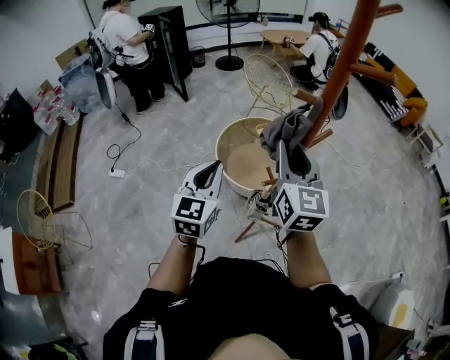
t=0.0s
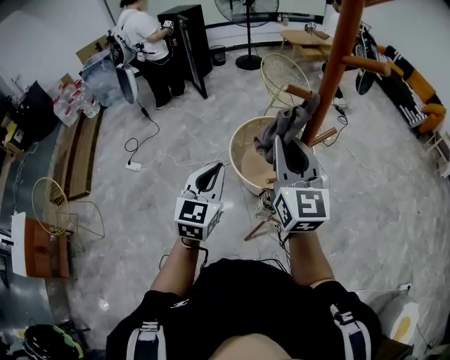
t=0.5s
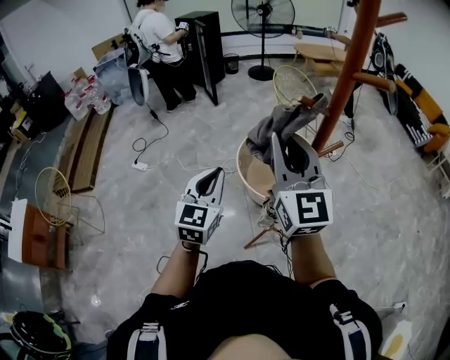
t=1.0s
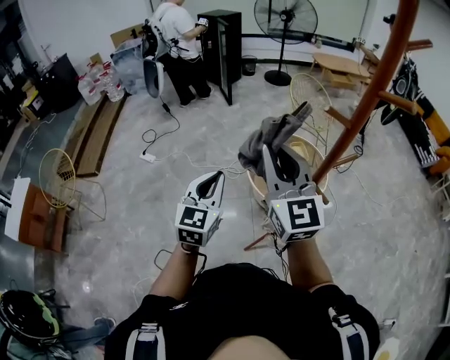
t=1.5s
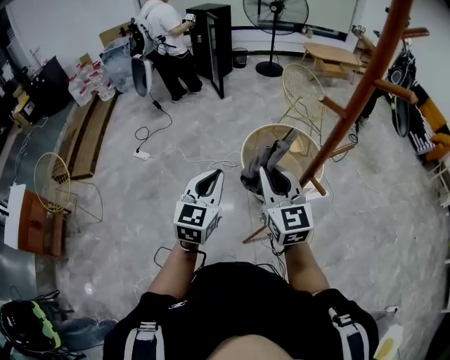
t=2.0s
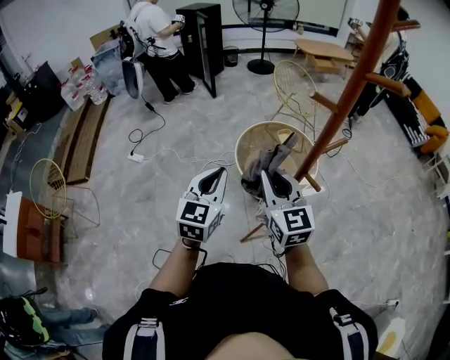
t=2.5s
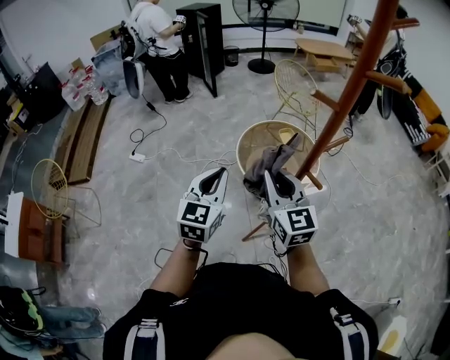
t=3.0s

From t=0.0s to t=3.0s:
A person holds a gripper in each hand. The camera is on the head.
From t=0.0s to t=1.5s: The right gripper moves to the left, upward and backward, roughly 15 cm, and changes its angle by some 30 degrees; the left gripper travels backward and to the left by some 10 cm.
From t=1.5s to t=3.0s: The right gripper goes about 10 cm downward.

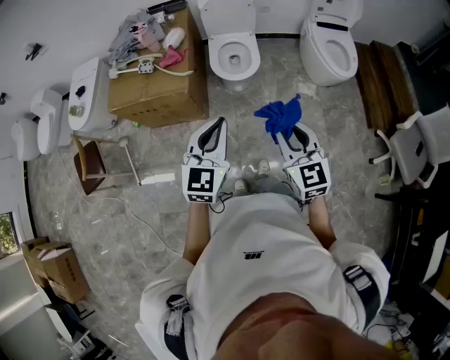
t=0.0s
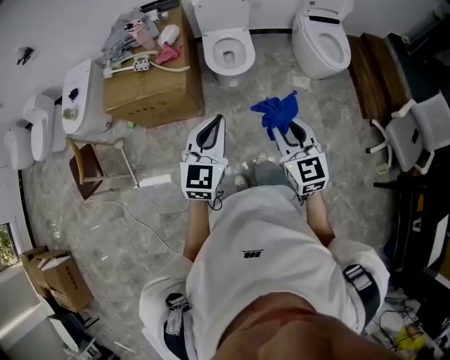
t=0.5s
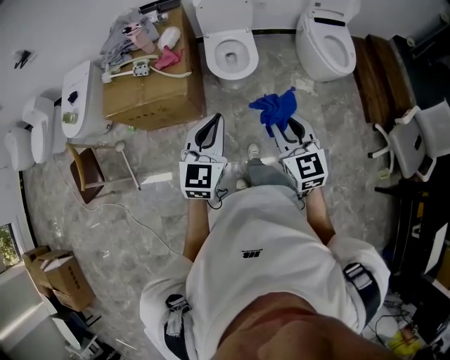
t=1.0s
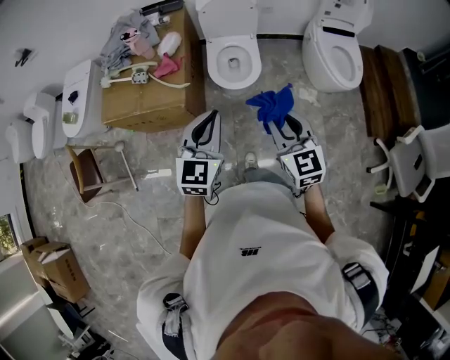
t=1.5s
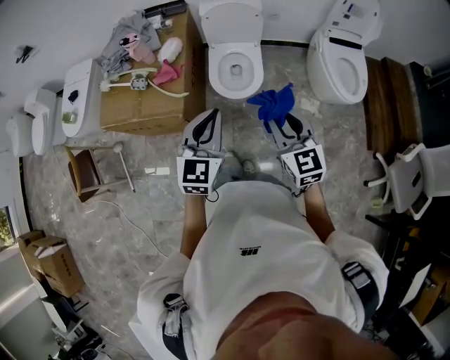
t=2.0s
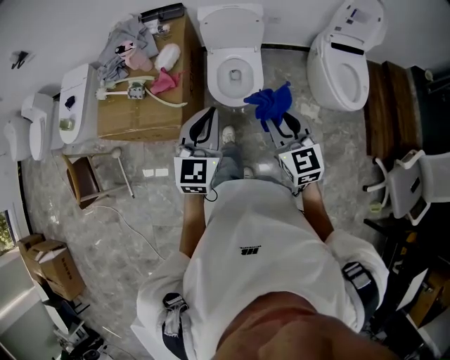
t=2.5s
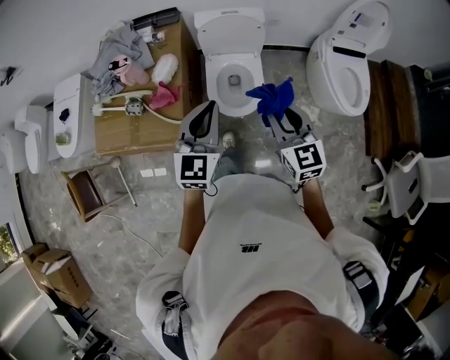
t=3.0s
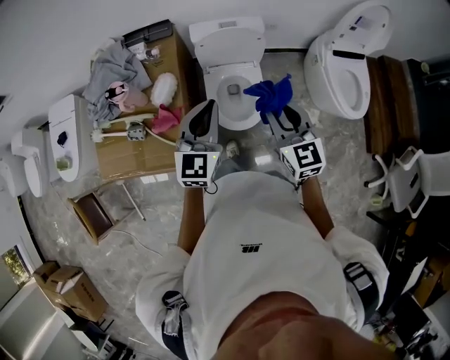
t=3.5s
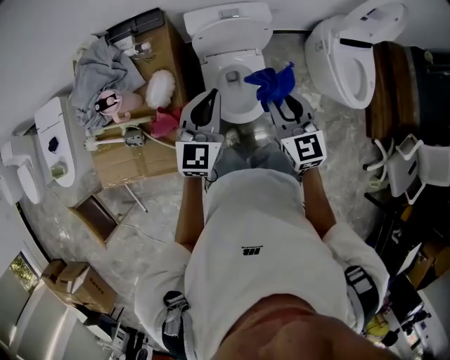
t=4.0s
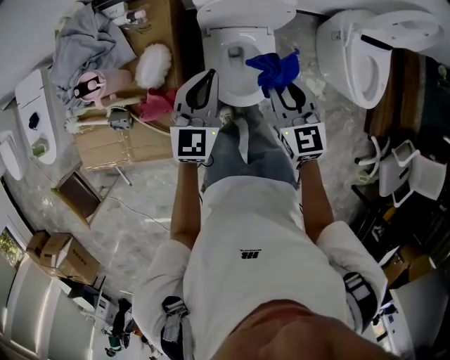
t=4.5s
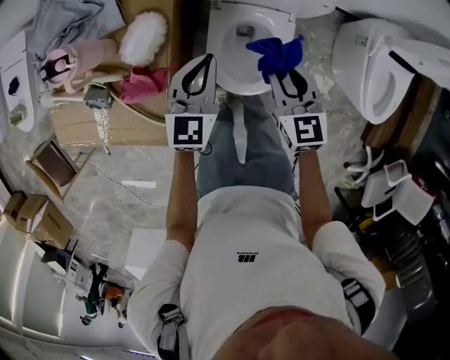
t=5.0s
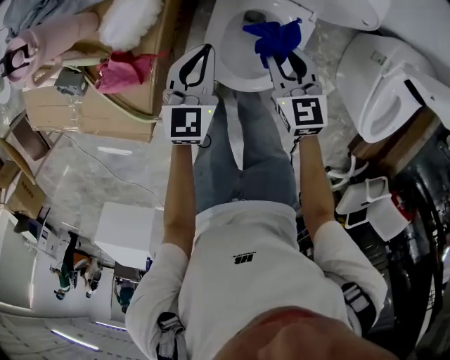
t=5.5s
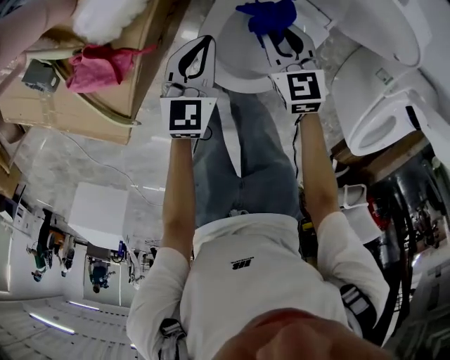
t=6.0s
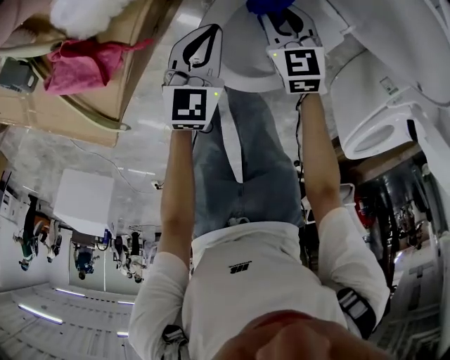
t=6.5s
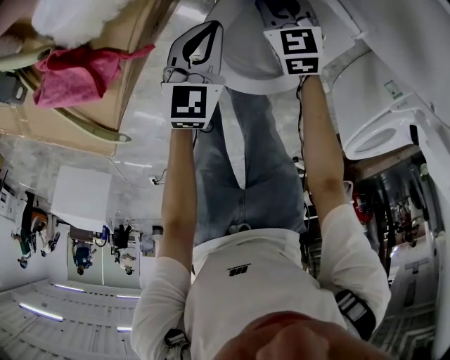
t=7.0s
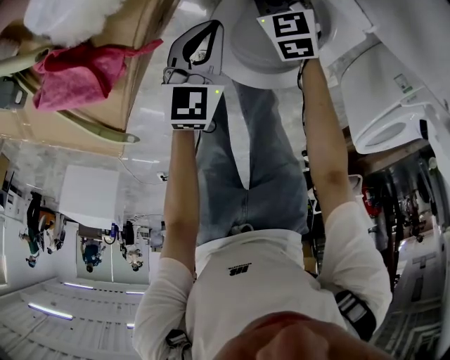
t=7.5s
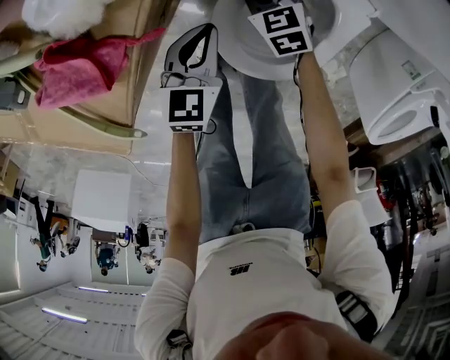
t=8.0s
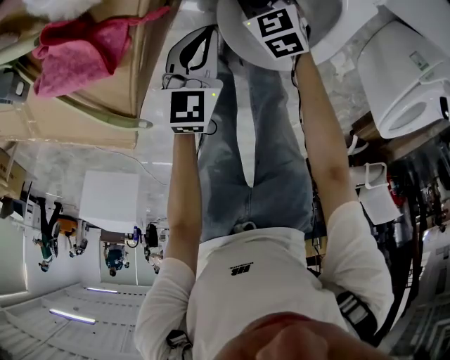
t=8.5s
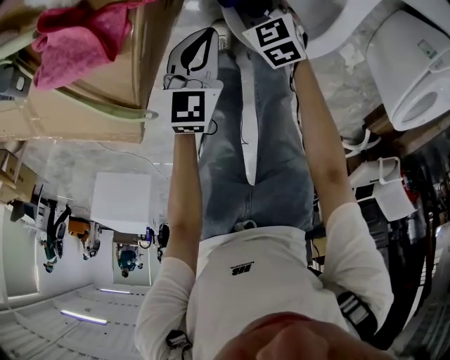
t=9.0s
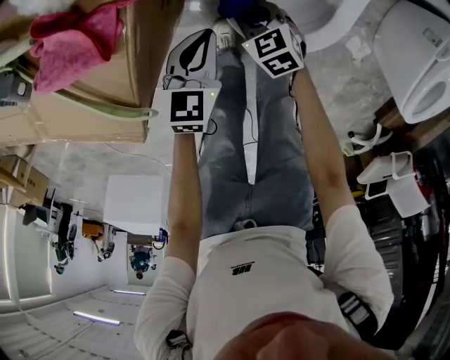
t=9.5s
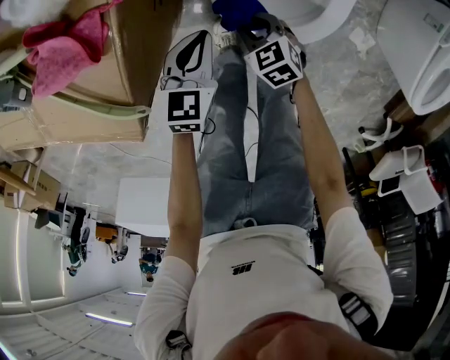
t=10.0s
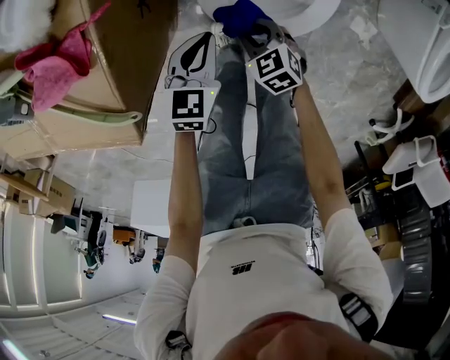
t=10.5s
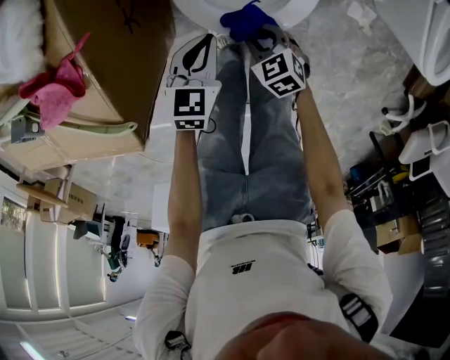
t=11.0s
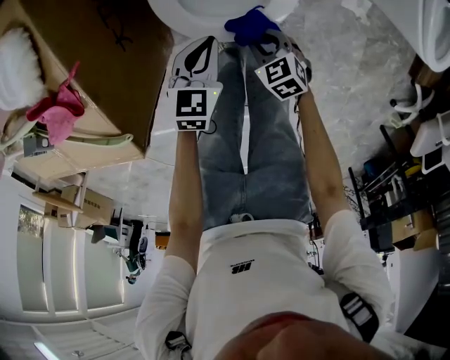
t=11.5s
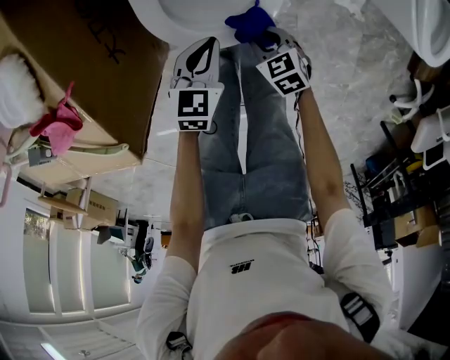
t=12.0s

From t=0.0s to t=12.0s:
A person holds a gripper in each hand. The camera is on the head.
From t=0.0s to t=2.0s: The grippers both shift forward by roughly 25 cm.
From t=2.0s to t=4.0s: The two grippers travel together, forward, approximately 40 cm.
From t=4.0s to t=6.0s: The grippers both shift downward by about 40 cm. The right gripper changes its angle by approximately 40 degrees; the left gripper rotates approximately 40 degrees.
From t=6.0s to t=8.0s: The right gripper heads downward and to the left, covering some 20 cm, while the left gripper goes about 15 cm downward and to the left.
From t=8.0s to t=10.0s: The right gripper travels backward by roughly 20 cm, while the left gripper goes about 10 cm backward.
From t=10.0s to t=12.0s: The two grippers go roughly 15 cm to the right. The left gripper swivels about 20 degrees. The right gripper changes its angle by about 20 degrees.

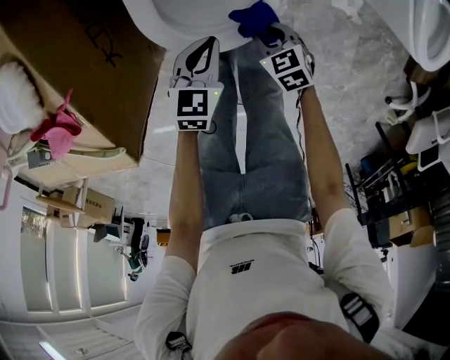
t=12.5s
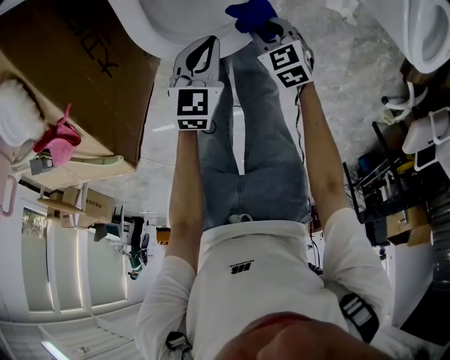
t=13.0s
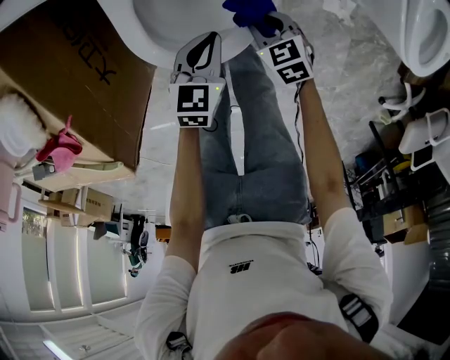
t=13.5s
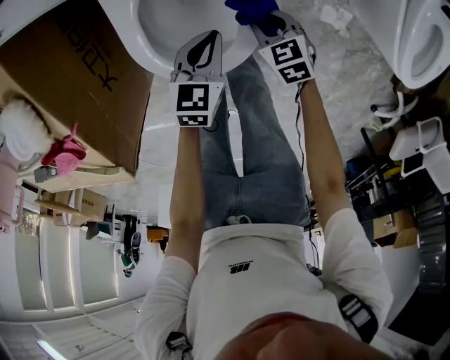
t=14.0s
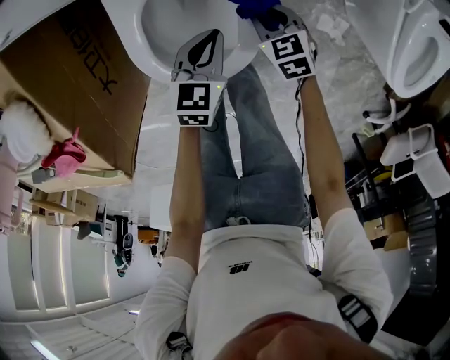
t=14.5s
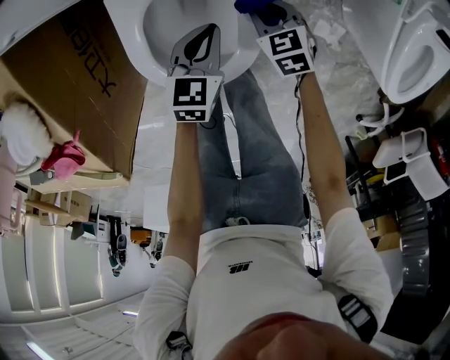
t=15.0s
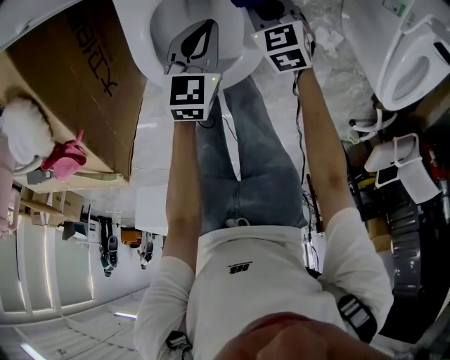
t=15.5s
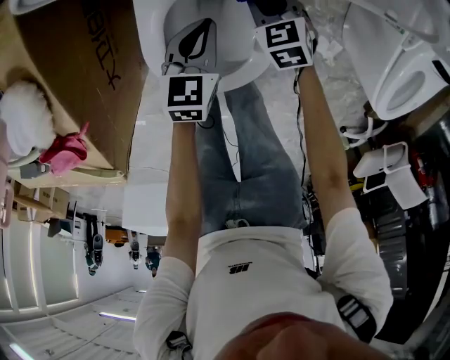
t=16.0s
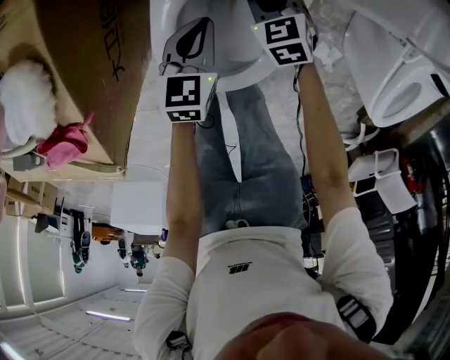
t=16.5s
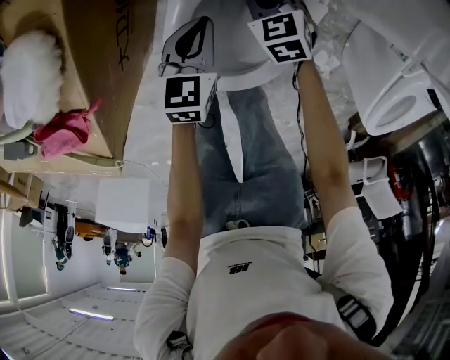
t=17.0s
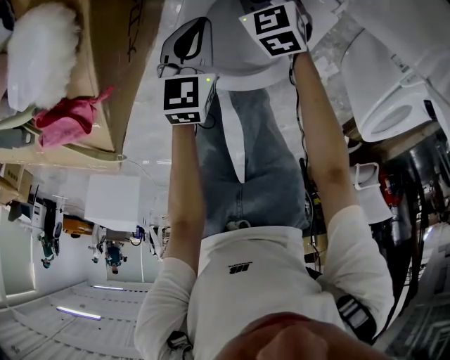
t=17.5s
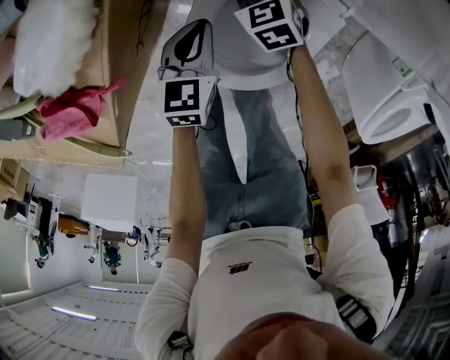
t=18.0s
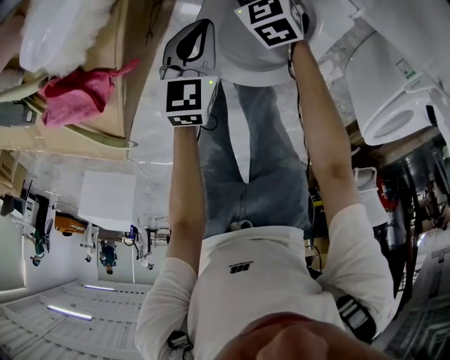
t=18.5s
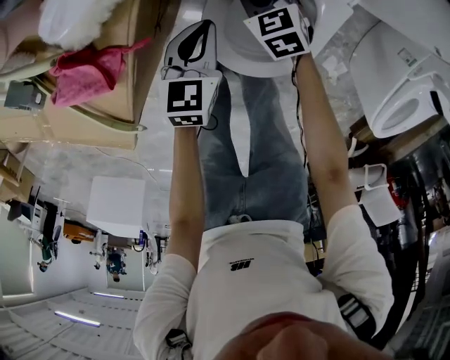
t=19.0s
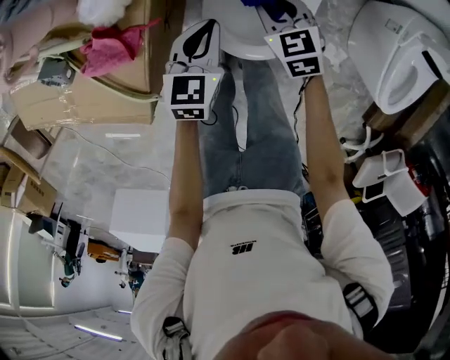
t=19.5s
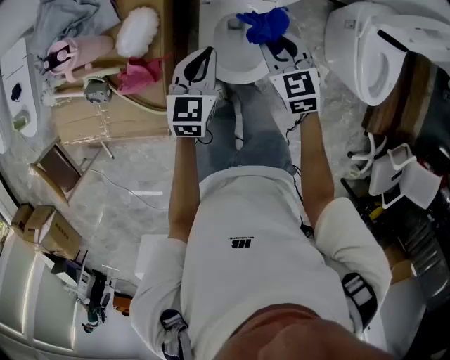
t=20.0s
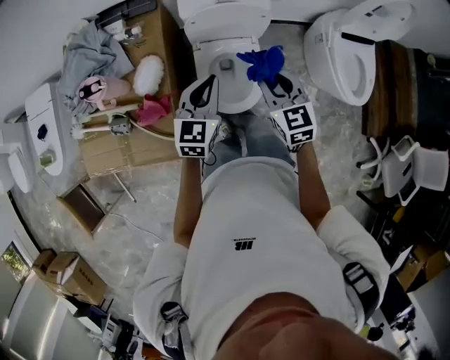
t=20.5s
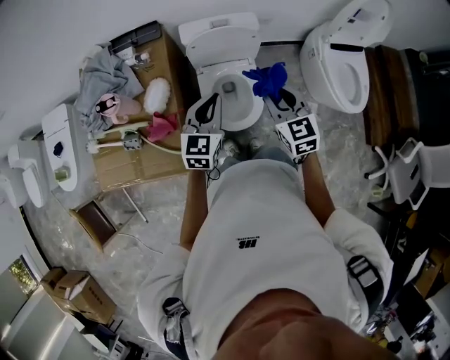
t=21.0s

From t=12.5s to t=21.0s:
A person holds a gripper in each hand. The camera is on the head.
From t=12.5s to t=14.5s: The right gripper shifts about 20 cm forward. Meanwhile the left gripper goes roughly 15 cm forward and to the right.
From t=14.5s to t=16.5s: The right gripper travels forward and to the left by approximately 15 cm. Meanwhile the left gripper moves to the left and forward, roughly 15 cm.
From t=16.5s to t=19.0s: Both grippers travel together to the left, some 15 cm.
From t=19.0s to t=21.0s: The grippers both shift upward by roughly 50 cm. The right gripper points its fingers approximately 30 degrees further upward. The left gripper swivels approximately 40 degrees.

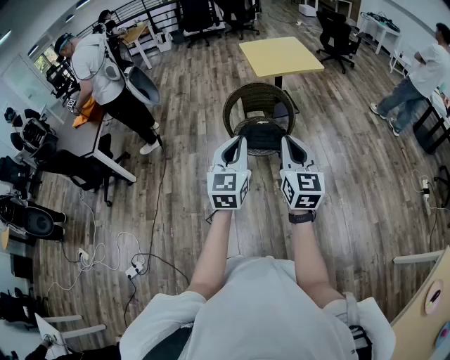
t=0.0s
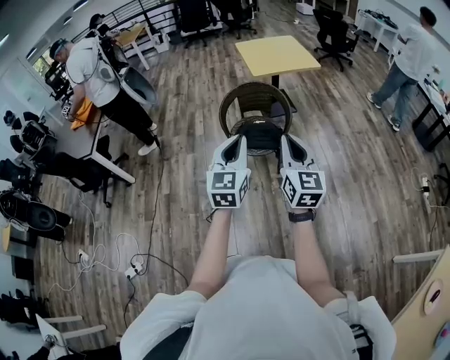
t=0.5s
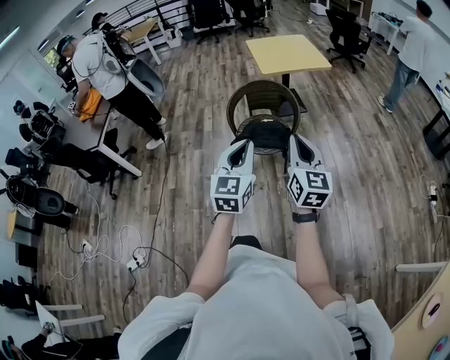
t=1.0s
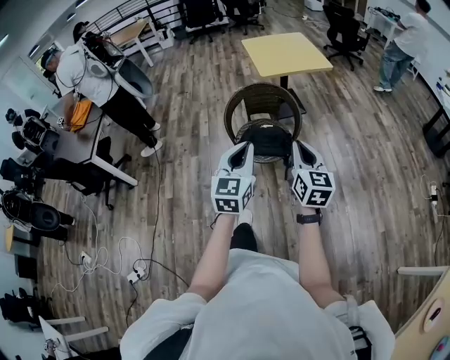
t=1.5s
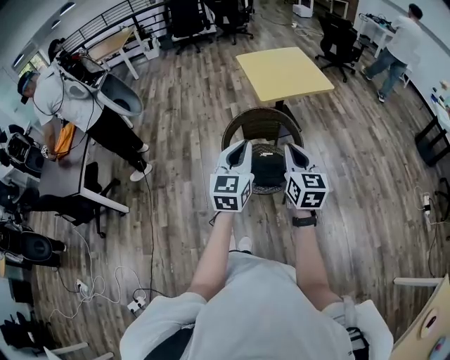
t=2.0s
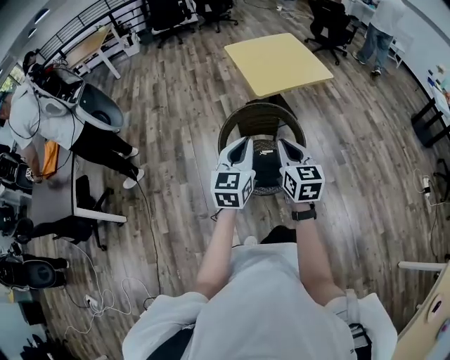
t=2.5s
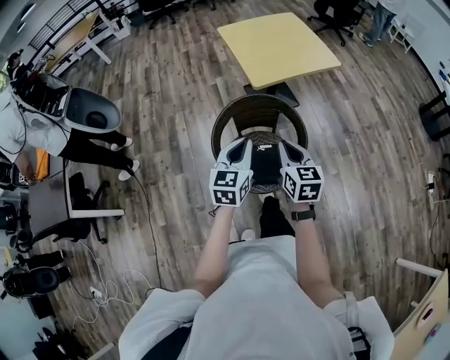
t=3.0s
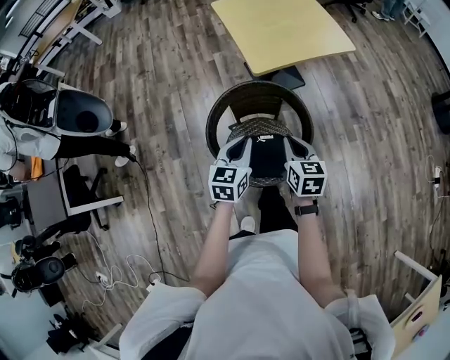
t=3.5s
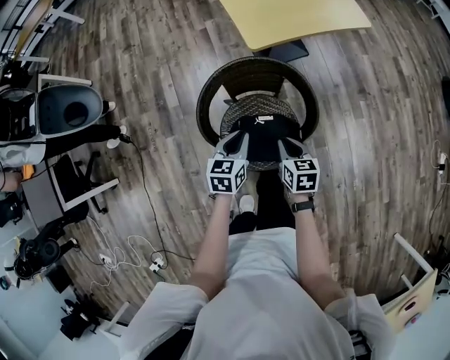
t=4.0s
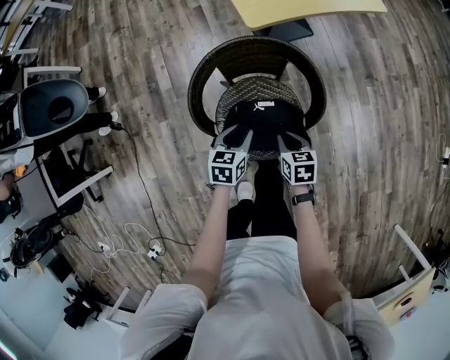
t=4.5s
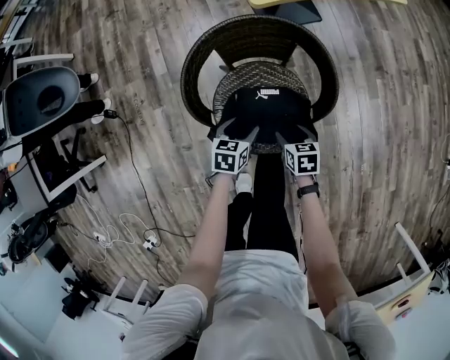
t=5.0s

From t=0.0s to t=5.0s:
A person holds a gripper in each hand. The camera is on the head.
From t=0.0s to t=2.5s: Both grippers are carried forward, roughly 40 cm.
From t=2.5s to t=5.0s: Both grippers travel together downward, about 50 cm. The left gripper points its fingers roughly 40 degrees further downward, and opens its fingers. The right gripper angles its fingers downward, by roughly 40 degrees, and opens up.
